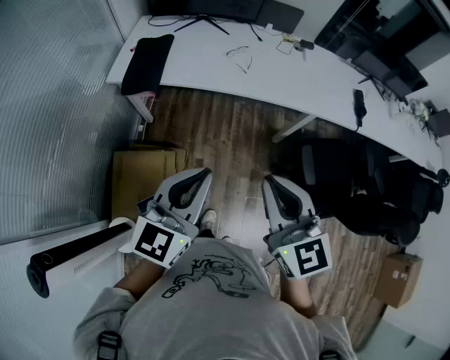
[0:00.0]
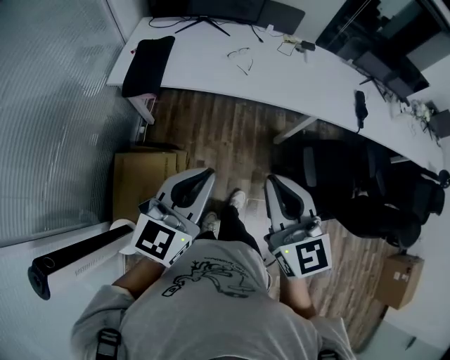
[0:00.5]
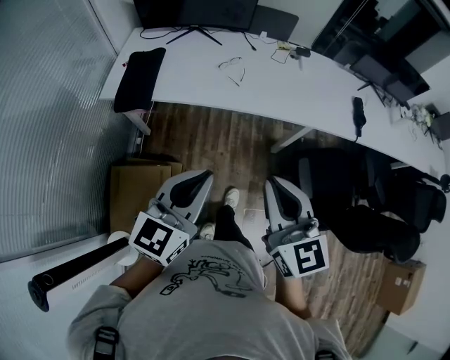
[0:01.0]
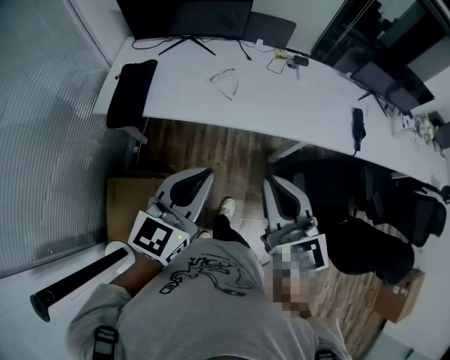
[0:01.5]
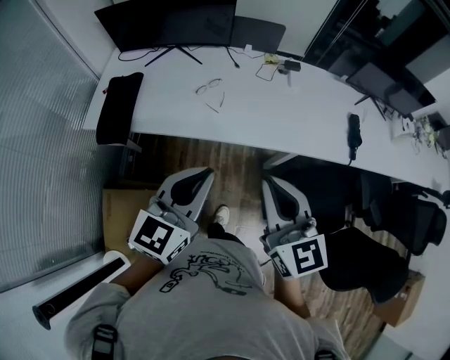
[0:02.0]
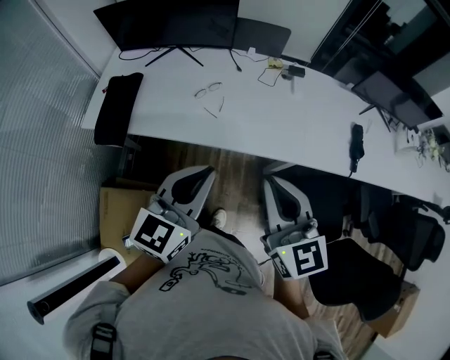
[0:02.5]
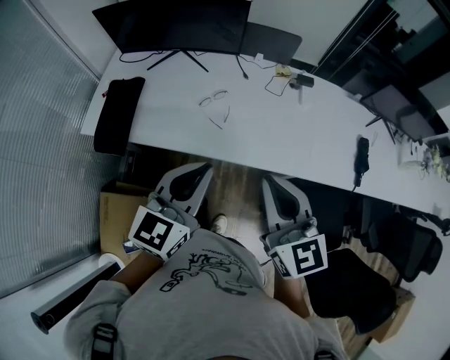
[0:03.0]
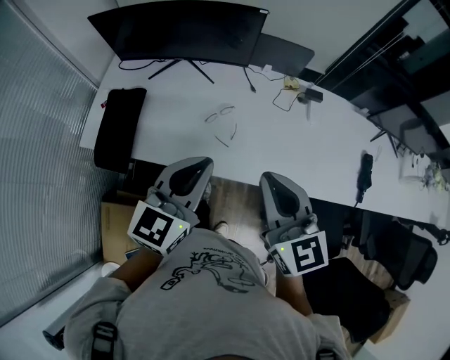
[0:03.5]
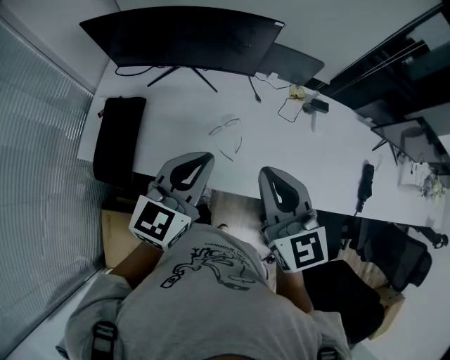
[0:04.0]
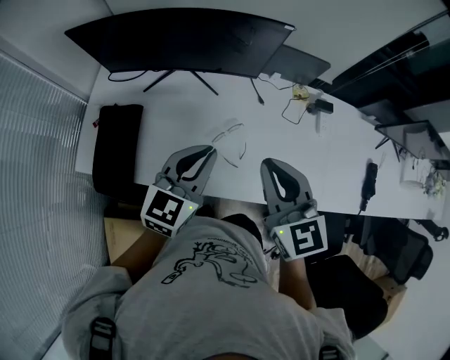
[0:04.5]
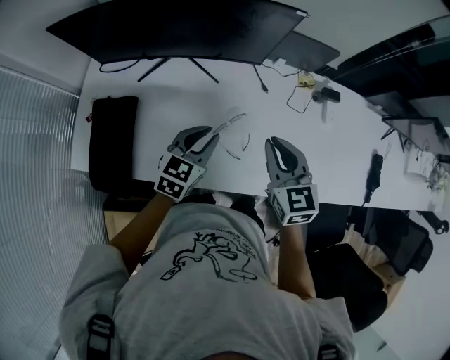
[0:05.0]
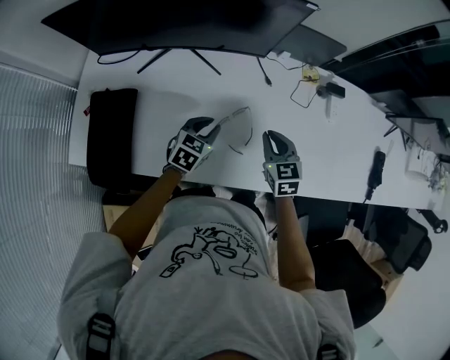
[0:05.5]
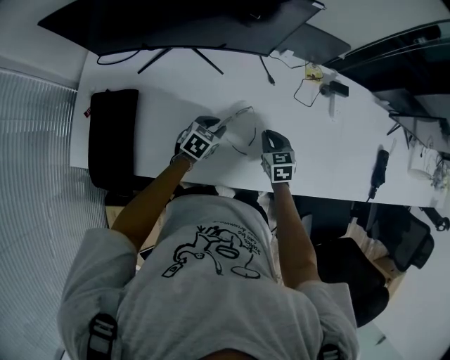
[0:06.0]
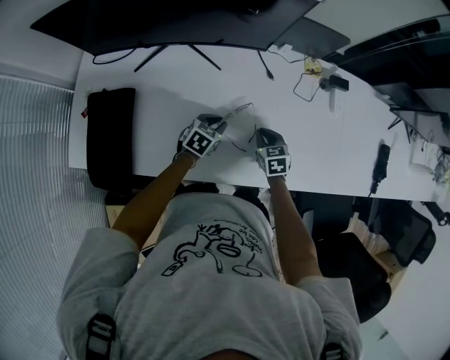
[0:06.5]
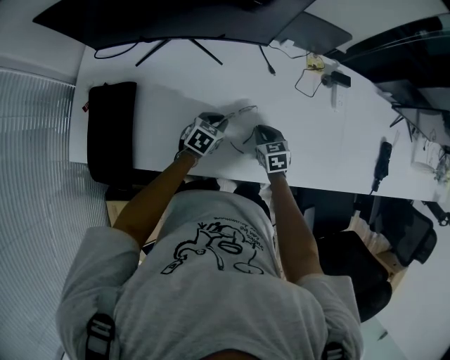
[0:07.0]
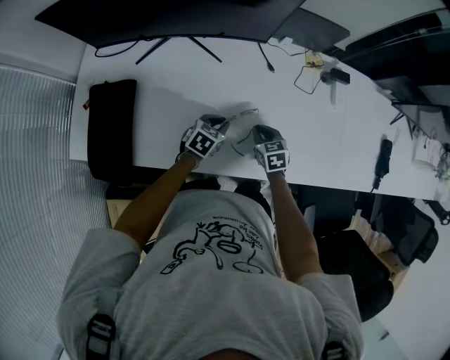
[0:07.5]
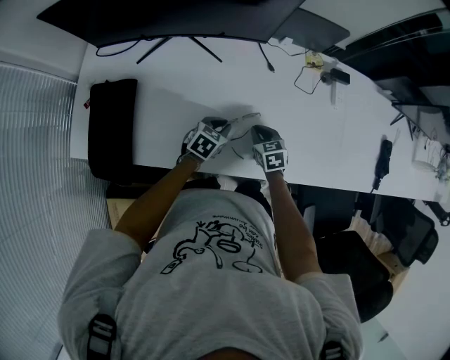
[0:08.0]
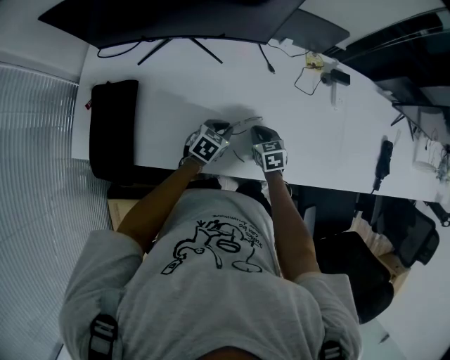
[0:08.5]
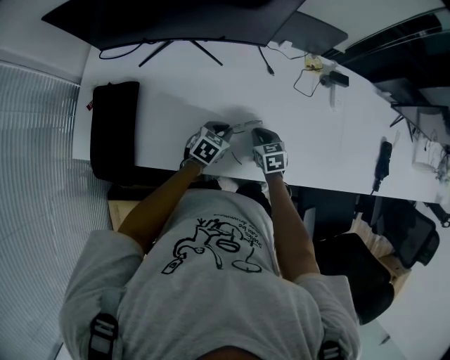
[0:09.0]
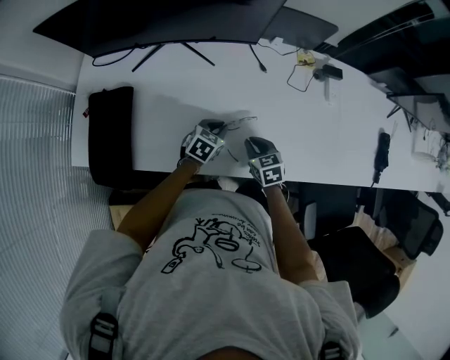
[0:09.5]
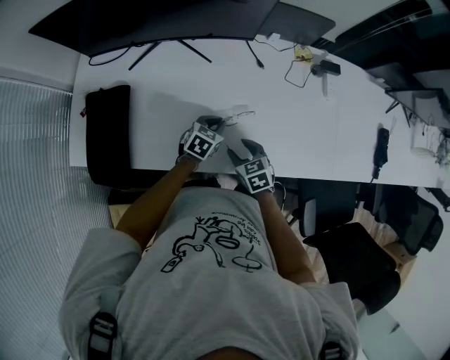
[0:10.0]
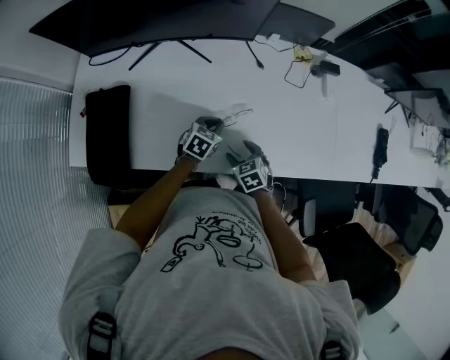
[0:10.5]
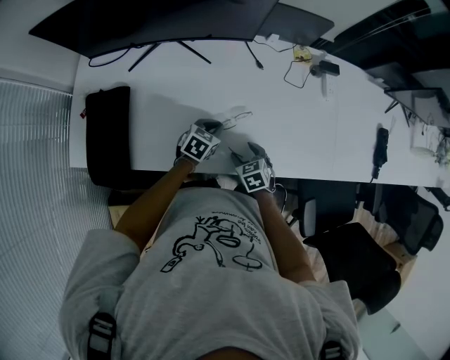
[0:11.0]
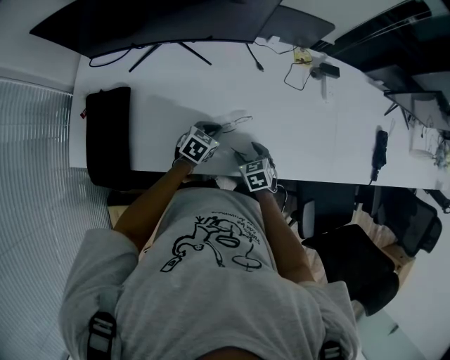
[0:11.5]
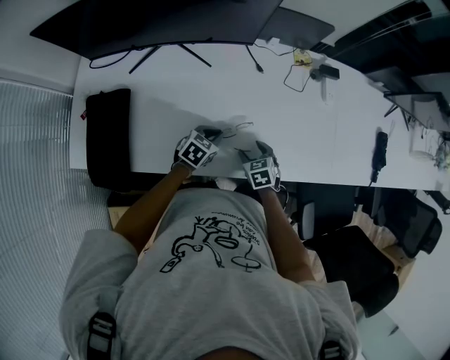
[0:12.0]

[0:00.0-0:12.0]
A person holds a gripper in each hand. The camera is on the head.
0:00.0 to 0:02.0: Both grippers travel together forward and to the right, roughly 30 cm.
0:02.0 to 0:04.0: Both grippers travel together forward, some 30 cm.
0:04.0 to 0:06.0: The two grippers go about 40 cm downward and forward. The right gripper tilts its fingers approximately 30 degrees downward; the left gripper angles its fingers downward, by approximately 40 degrees, and opens up.
0:06.0 to 0:08.0: The left gripper shifts by approximately 5 cm. Meanwhile the right gripper moves approximately 5 cm.
0:08.0 to 0:10.0: The right gripper travels backward by some 10 cm, and opens up.
0:10.0 to 0:12.0: The right gripper travels to the right by about 5 cm.

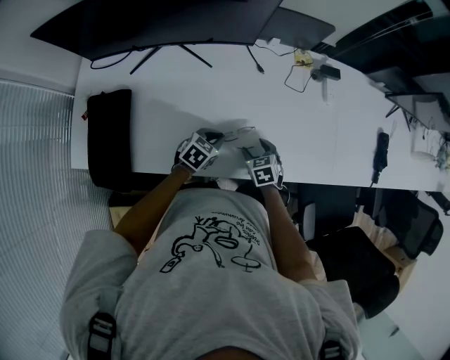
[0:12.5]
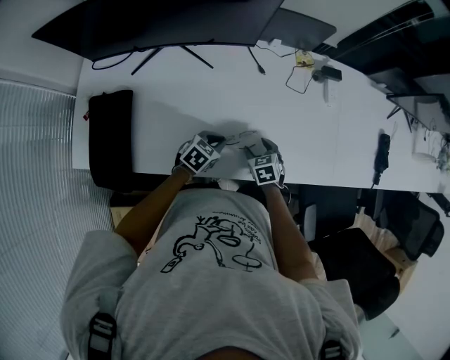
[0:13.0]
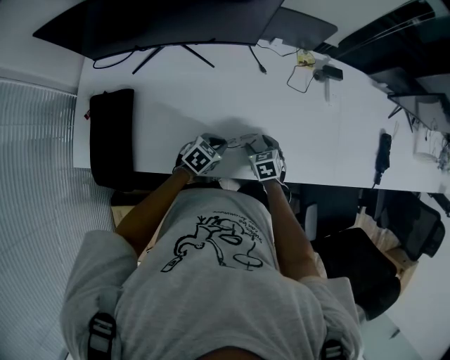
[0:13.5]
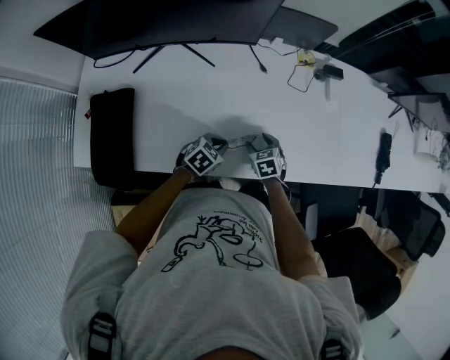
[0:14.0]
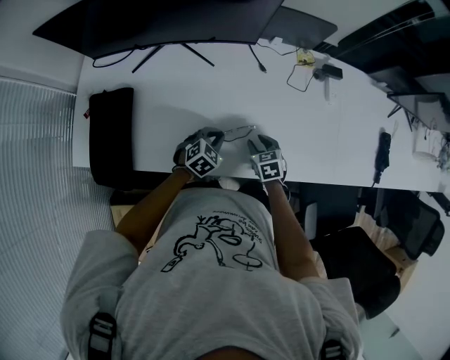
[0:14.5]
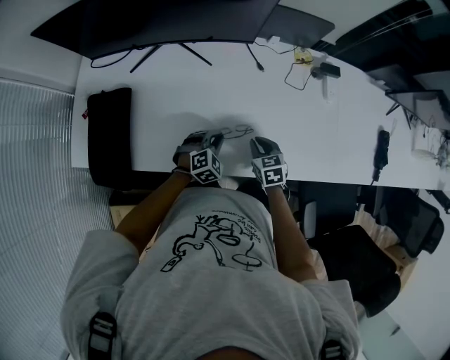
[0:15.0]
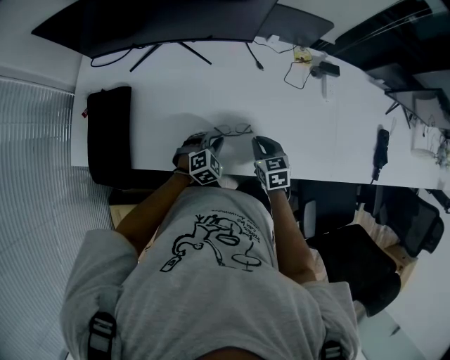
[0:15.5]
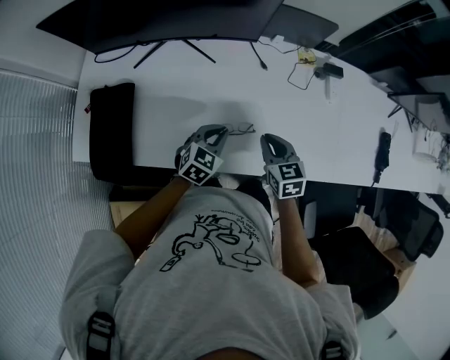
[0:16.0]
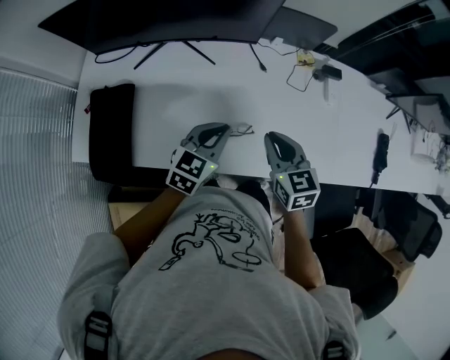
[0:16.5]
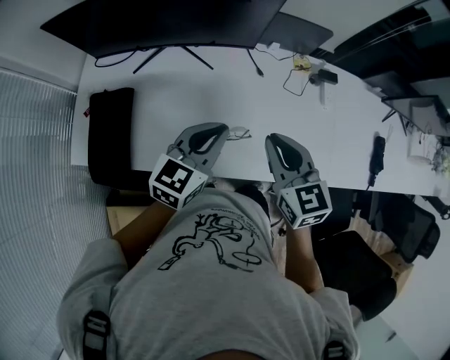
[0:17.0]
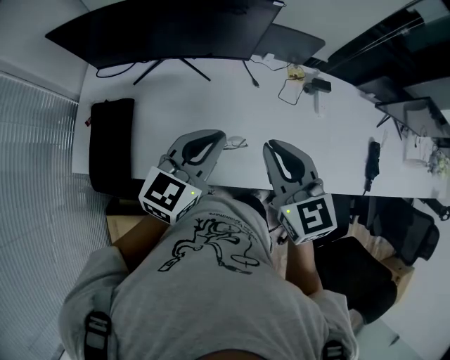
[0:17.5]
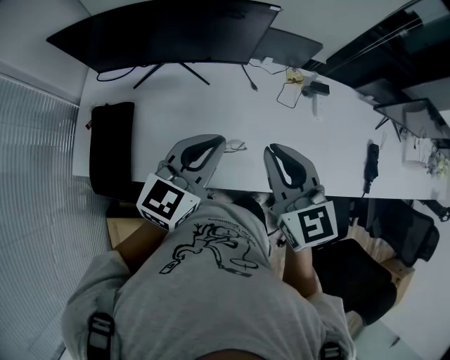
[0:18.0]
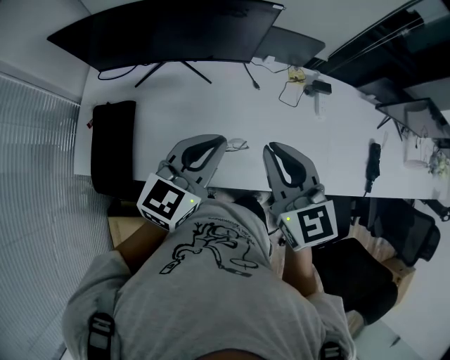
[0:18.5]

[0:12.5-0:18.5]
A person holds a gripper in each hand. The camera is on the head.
0:12.5 to 0:14.5: The right gripper closes.
0:14.5 to 0:16.5: Both grippers move upward, roughly 20 cm. The left gripper changes its angle by roughly 30 degrees, while the right gripper turns by some 20 degrees, and closes up.
0:16.5 to 0:18.5: Both grippers move upward, some 15 cm.

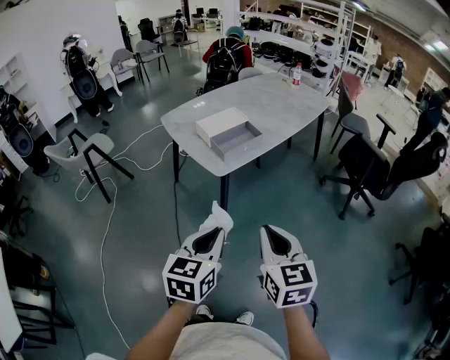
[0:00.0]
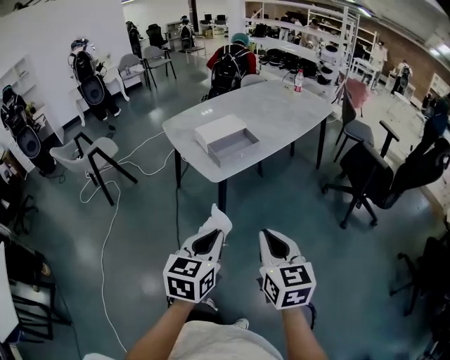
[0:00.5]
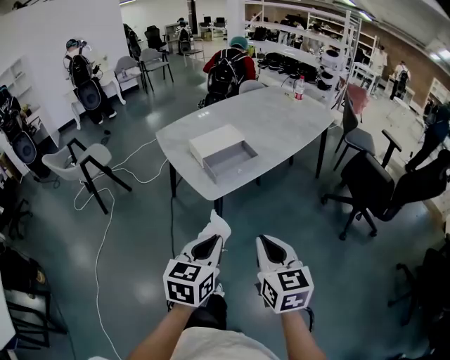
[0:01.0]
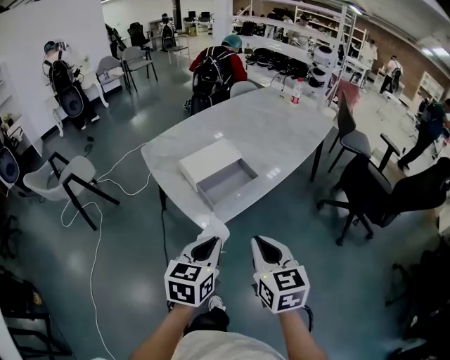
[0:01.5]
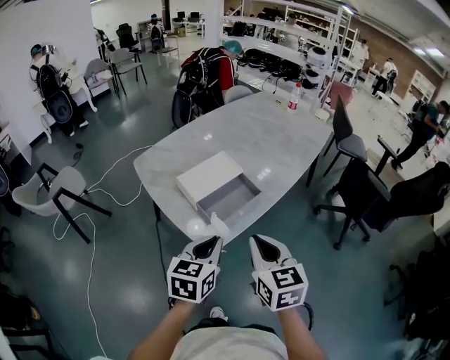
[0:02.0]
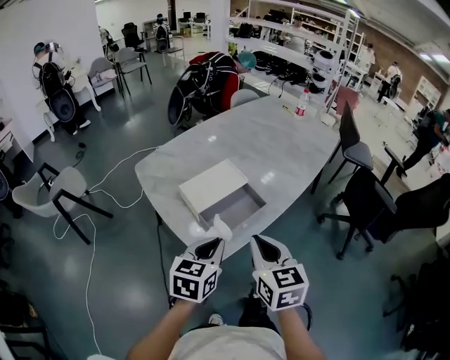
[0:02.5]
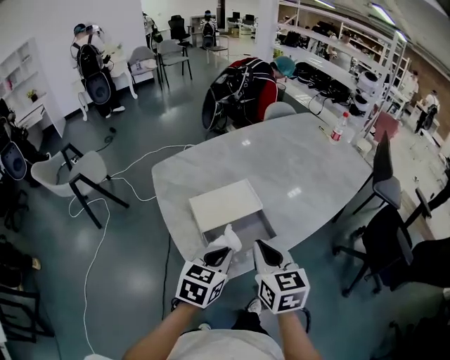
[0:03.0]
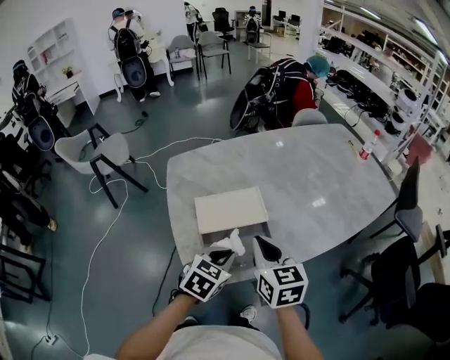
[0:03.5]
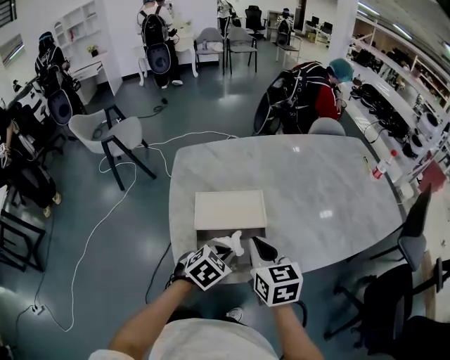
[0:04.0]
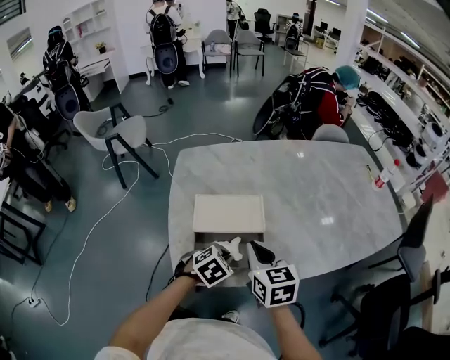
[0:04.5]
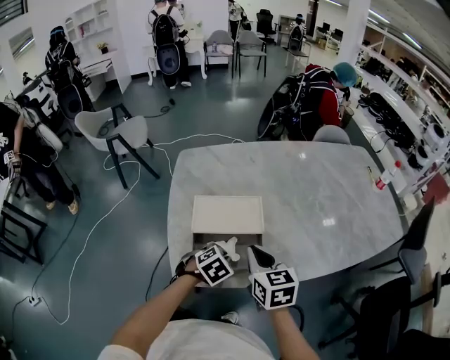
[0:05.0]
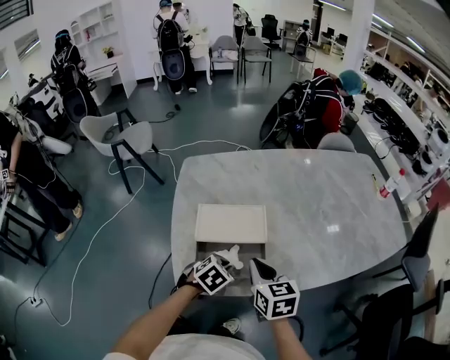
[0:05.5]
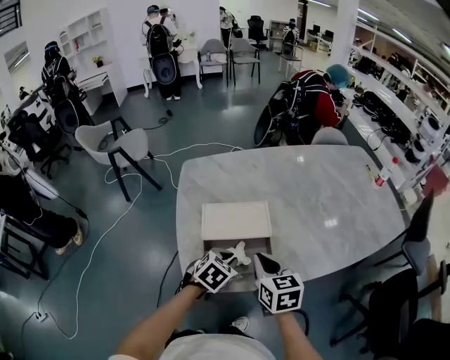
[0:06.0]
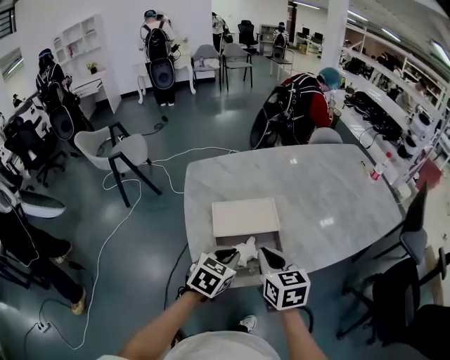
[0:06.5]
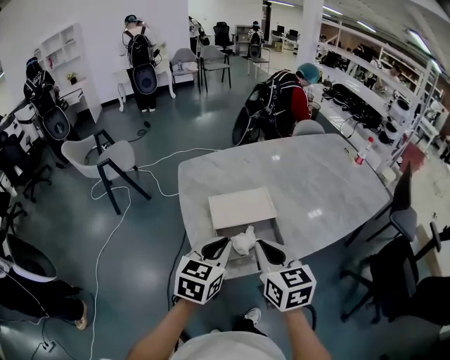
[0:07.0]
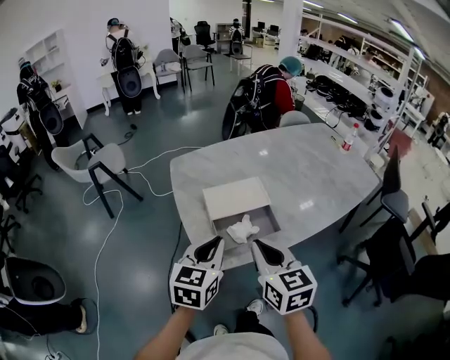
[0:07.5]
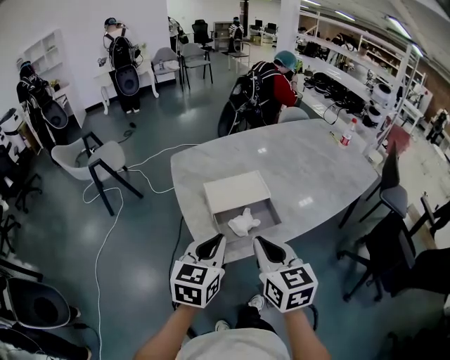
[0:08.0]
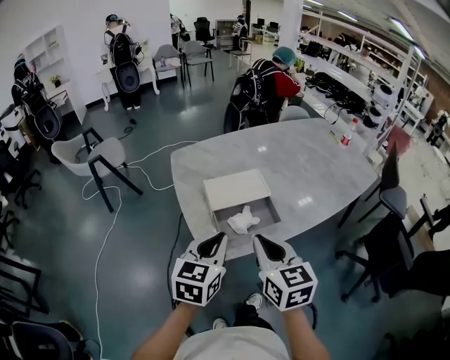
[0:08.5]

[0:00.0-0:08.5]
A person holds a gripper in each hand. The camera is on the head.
0:00.0 to 0:02.0: Both grippers travel together forward, some 30 cm.
0:02.0 to 0:04.0: The left gripper changes place by some 25 cm, and swivels some 30 degrees; the right gripper shifts by about 25 cm, and rotates about 30 degrees.
0:04.0 to 0:06.5: The right gripper changes place by roughly 5 cm, while the left gripper is displaced upward and to the left by approximately 10 cm.
0:06.5 to 0:08.5: Both grippers move backward and upward, some 15 cm. The left gripper swivels about 20 degrees.
